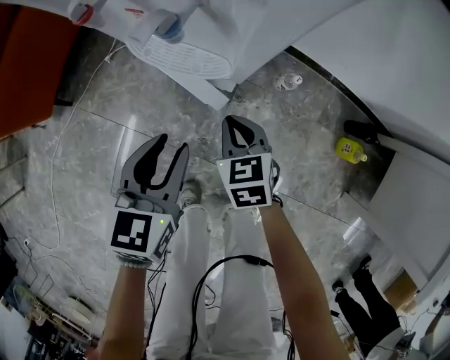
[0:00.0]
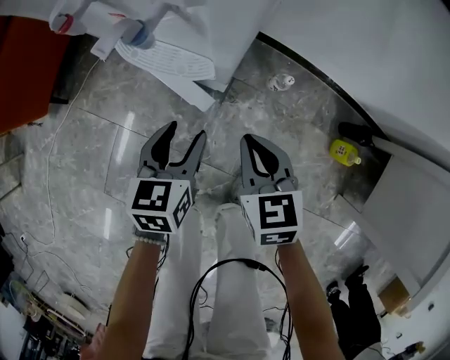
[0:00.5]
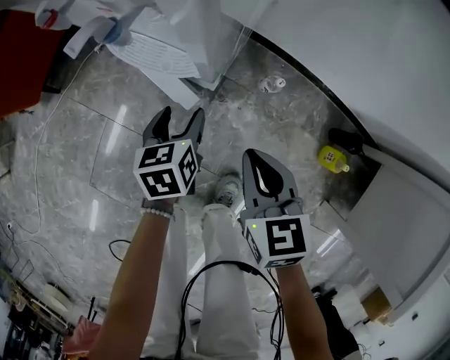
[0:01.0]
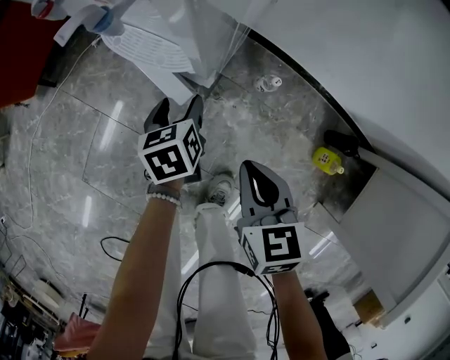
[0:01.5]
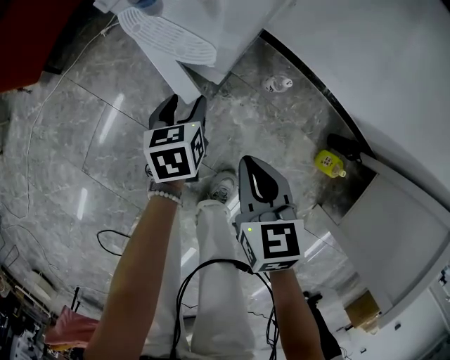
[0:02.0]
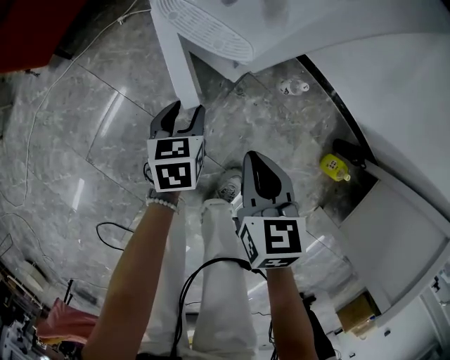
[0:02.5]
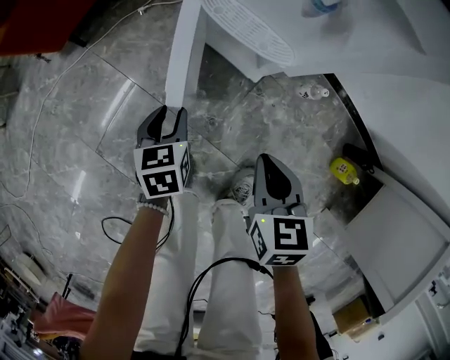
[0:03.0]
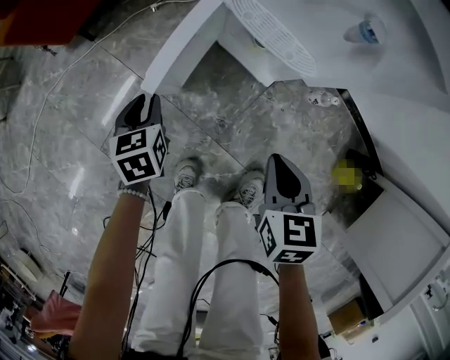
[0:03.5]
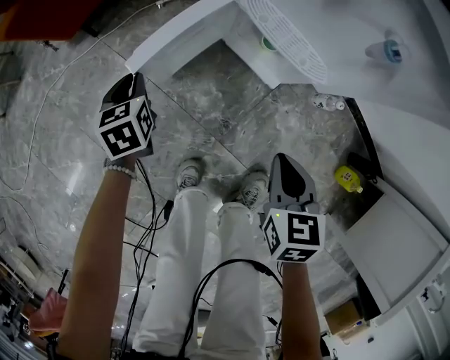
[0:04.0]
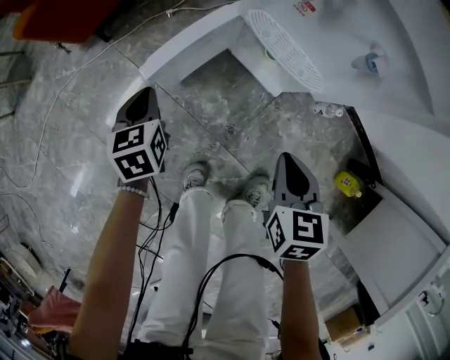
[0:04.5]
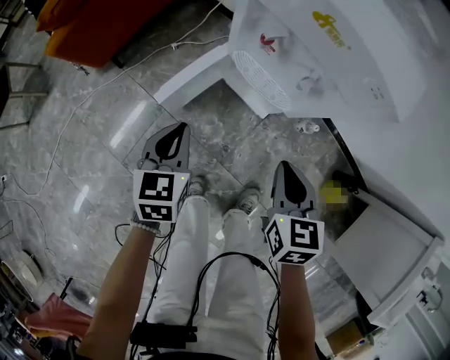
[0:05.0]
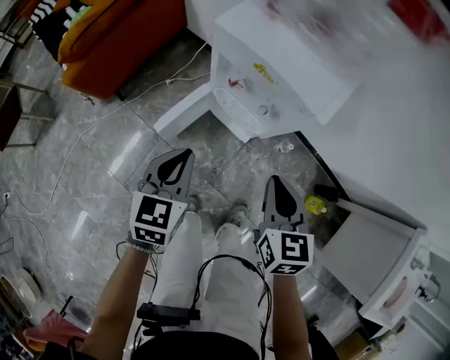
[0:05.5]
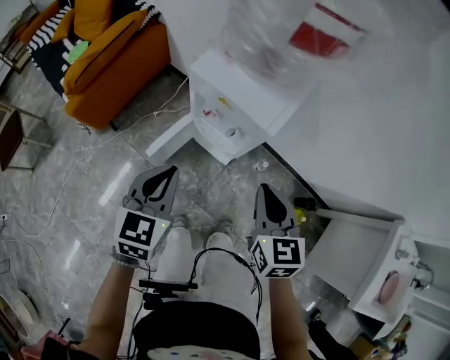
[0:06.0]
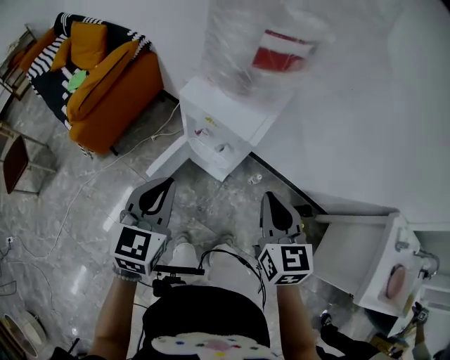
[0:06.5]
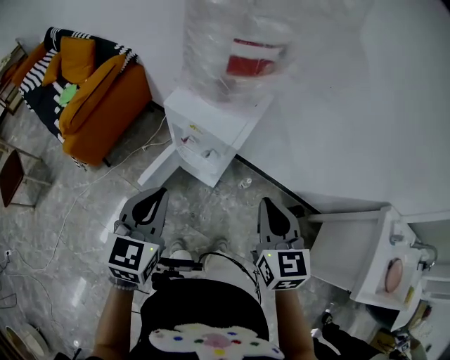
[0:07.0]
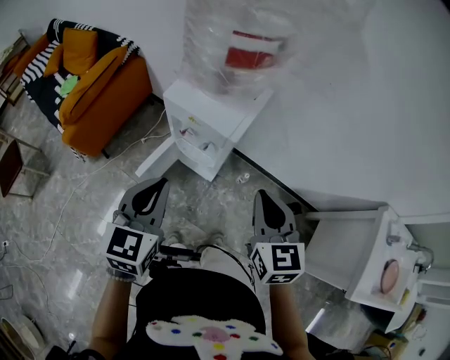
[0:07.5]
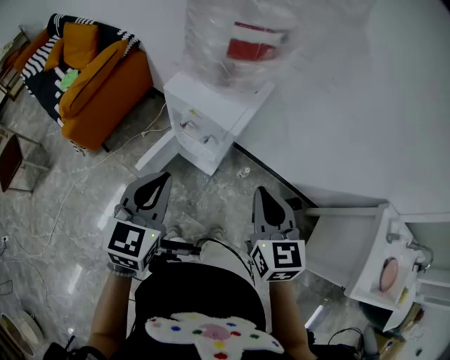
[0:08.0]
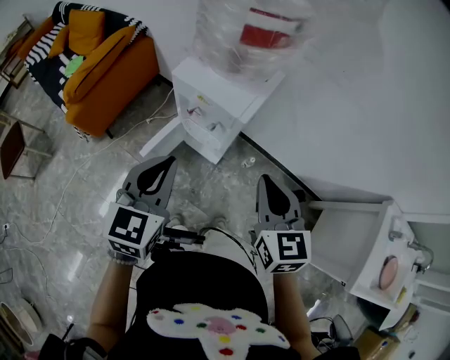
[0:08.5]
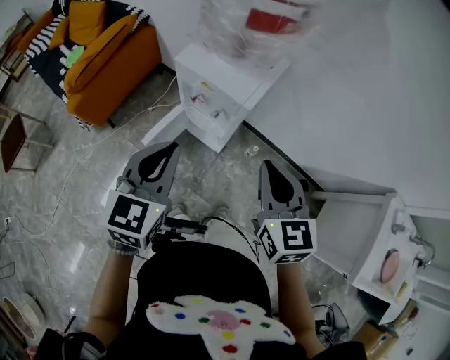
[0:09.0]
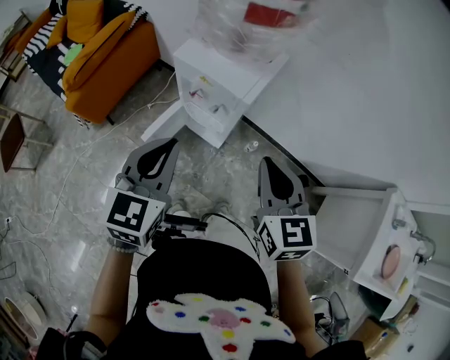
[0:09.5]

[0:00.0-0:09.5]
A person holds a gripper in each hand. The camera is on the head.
0:00.0 to 0:02.0: The right gripper travels to the right, upward and backward by approximately 15 cm. Meanwhile the left gripper shifts some 15 cm downward and to the right, and turns by some 30 degrees.
0:02.0 to 0:04.0: The left gripper moves to the left, about 35 cm, and closes its fingers. Meanwhile the right gripper travels to the left by about 10 cm.
0:04.0 to 0:05.5: The left gripper goes about 40 cm upward and to the right, and turns by approximately 40 degrees; the right gripper travels upward by about 30 cm.
0:05.5 to 0:07.5: The right gripper goes some 25 cm upward and to the right. The left gripper heads upward, covering roughly 25 cm.
0:07.5 to 0:09.5: The grippers stay close to where they were, moving slightly.

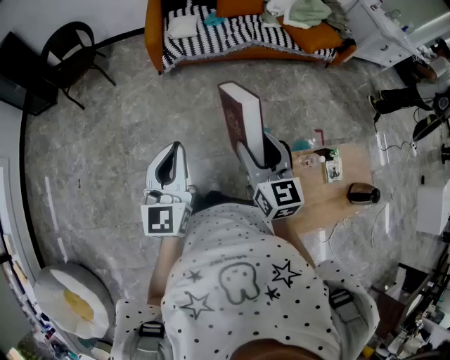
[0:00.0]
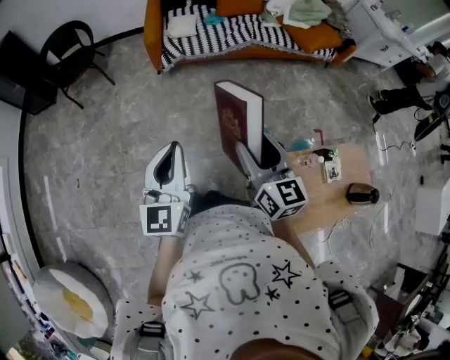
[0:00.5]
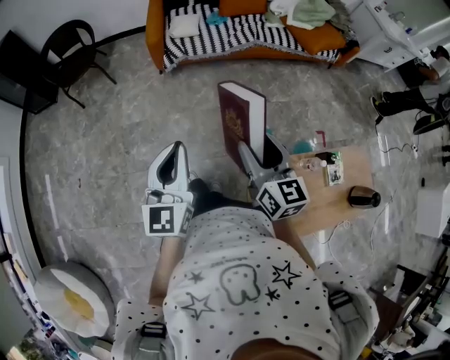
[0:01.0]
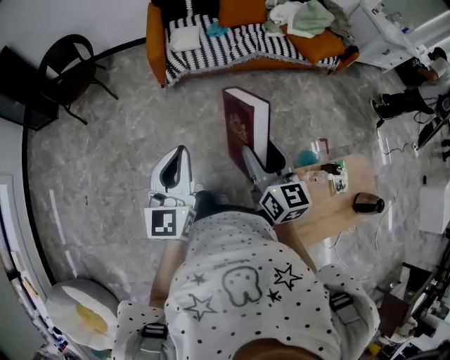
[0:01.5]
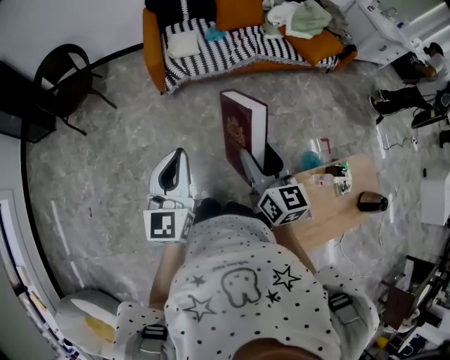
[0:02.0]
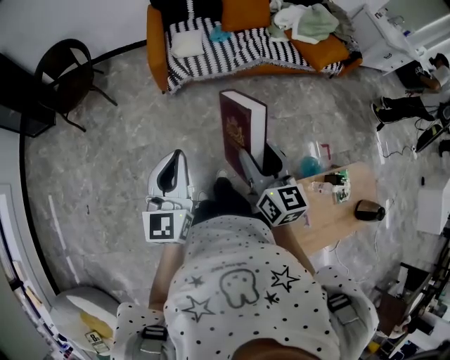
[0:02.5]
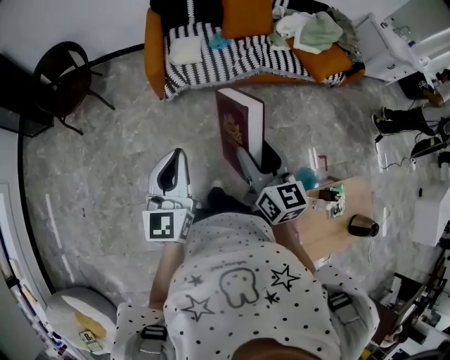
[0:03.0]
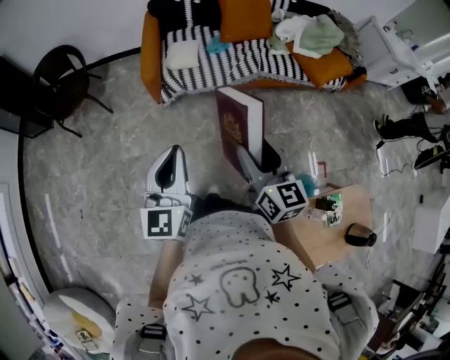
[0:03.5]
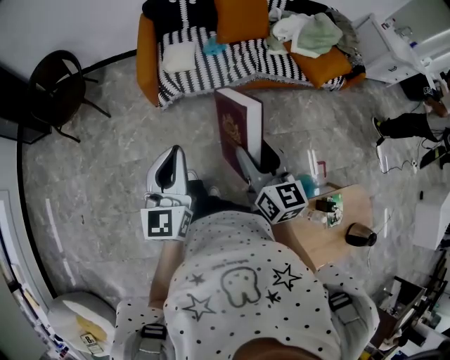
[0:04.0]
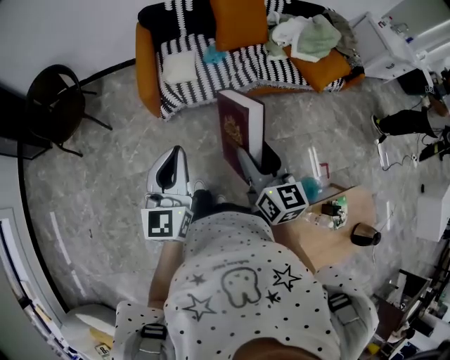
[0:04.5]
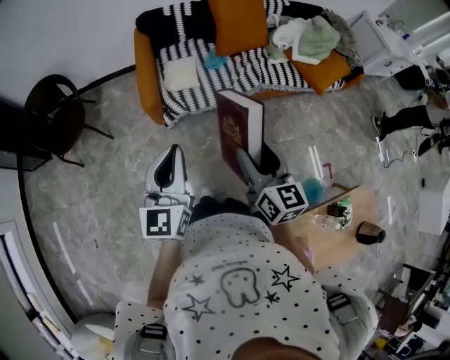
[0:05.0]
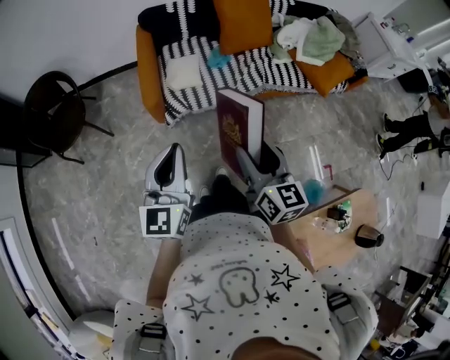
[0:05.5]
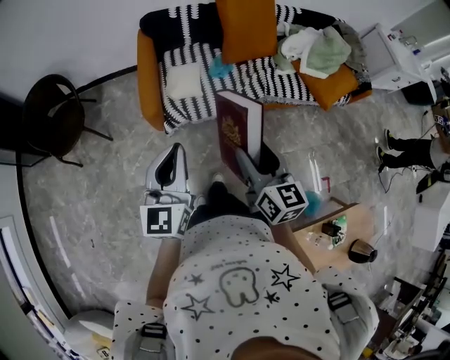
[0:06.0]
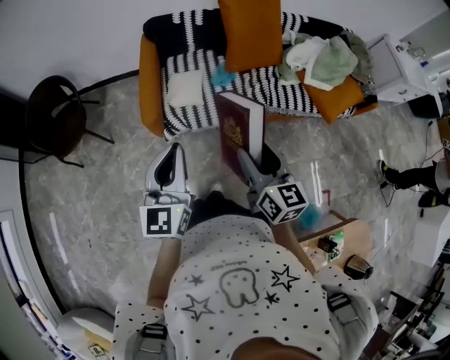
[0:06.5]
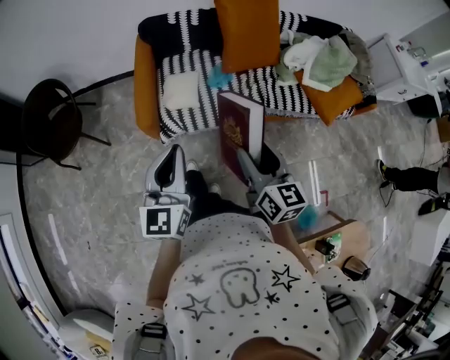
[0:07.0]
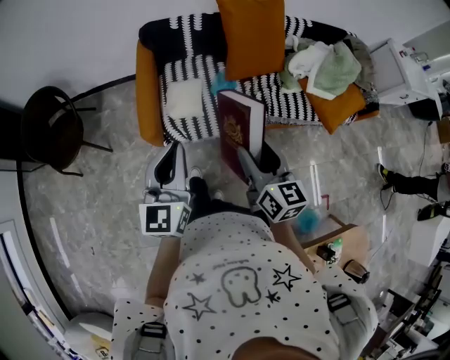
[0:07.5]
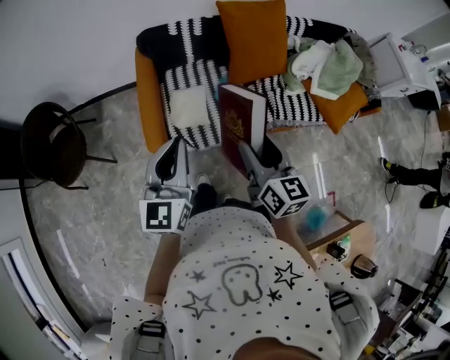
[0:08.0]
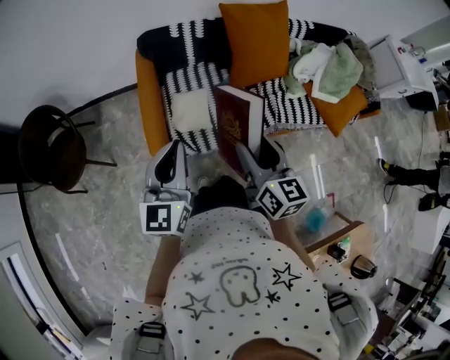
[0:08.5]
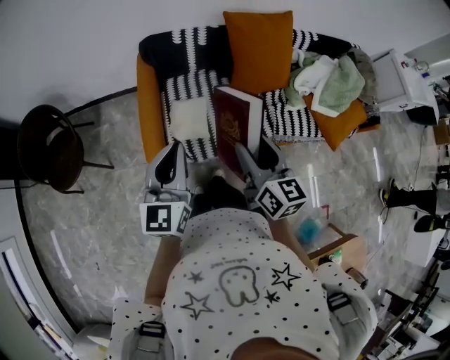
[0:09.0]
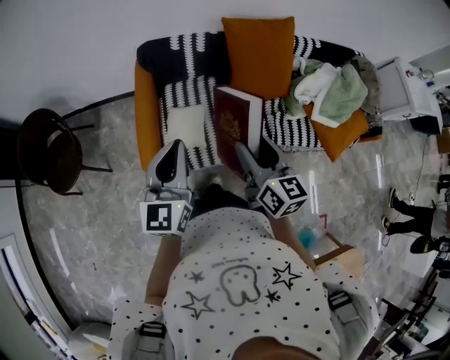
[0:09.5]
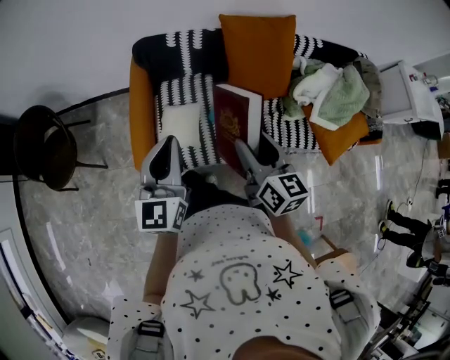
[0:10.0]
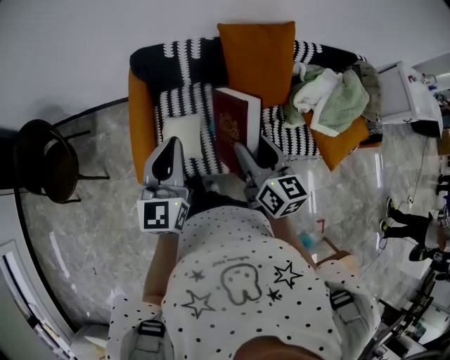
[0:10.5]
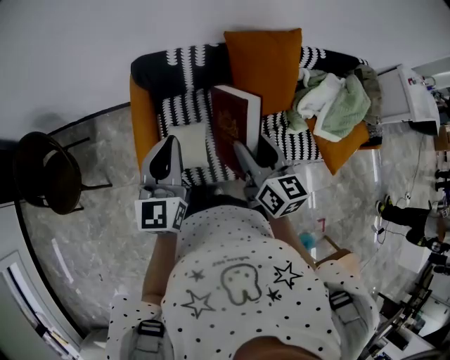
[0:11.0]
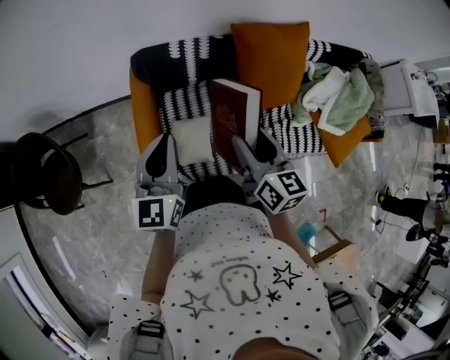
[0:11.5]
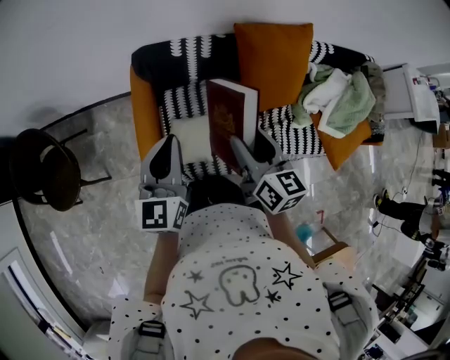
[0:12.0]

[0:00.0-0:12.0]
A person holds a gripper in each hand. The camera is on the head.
0:00.0 to 0:02.0: The grippers both shift forward and to the left by some 15 cm.
0:02.0 to 0:04.0: The grippers both shift forward and to the right by some 15 cm.
0:04.0 to 0:06.0: The two grippers go about 20 cm forward.
0:06.0 to 0:08.0: Both grippers move forward, roughly 20 cm.
0:08.0 to 0:10.0: Both grippers travel together forward, some 15 cm.
0:10.0 to 0:12.0: Both grippers move forward and to the left, some 15 cm.

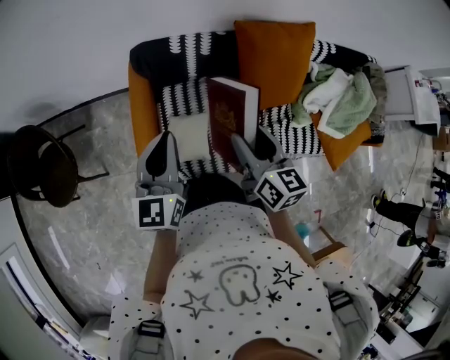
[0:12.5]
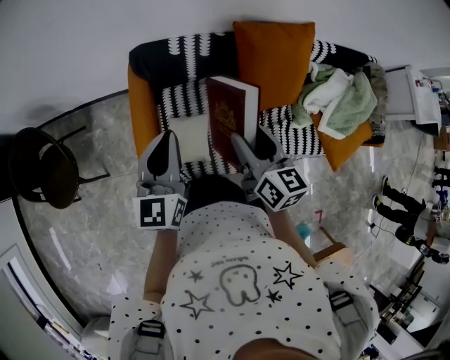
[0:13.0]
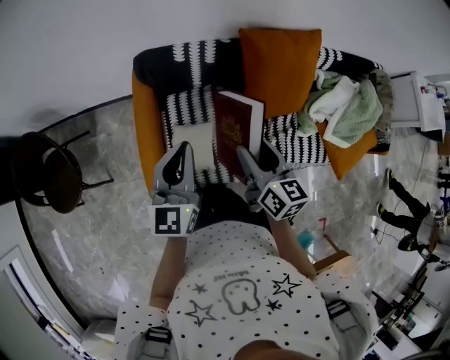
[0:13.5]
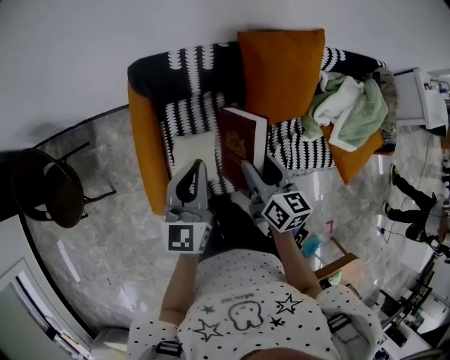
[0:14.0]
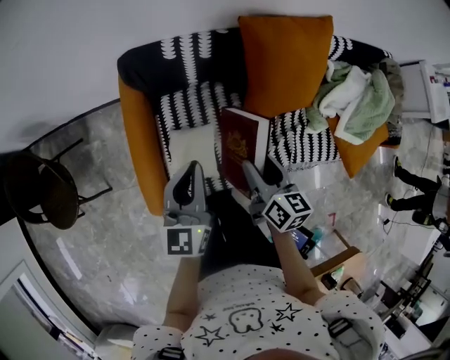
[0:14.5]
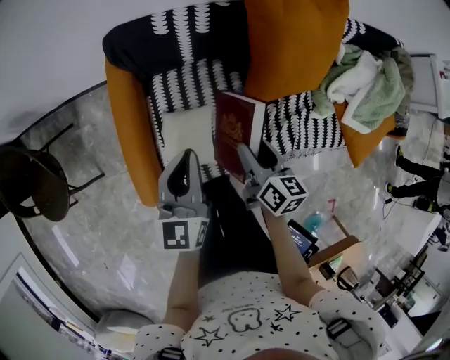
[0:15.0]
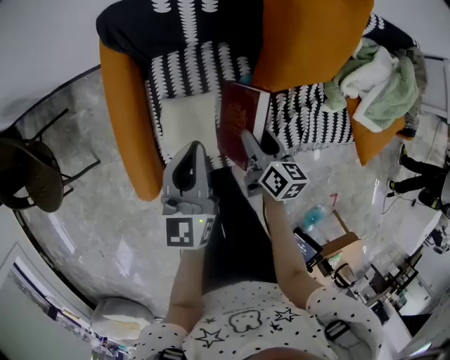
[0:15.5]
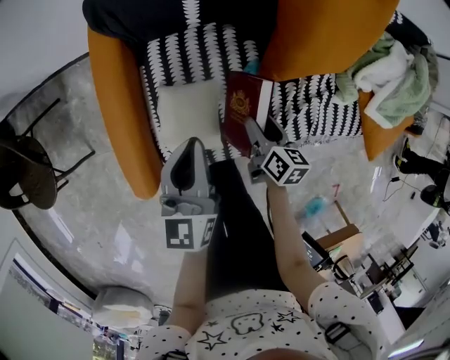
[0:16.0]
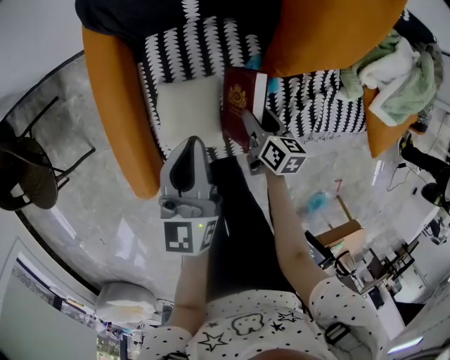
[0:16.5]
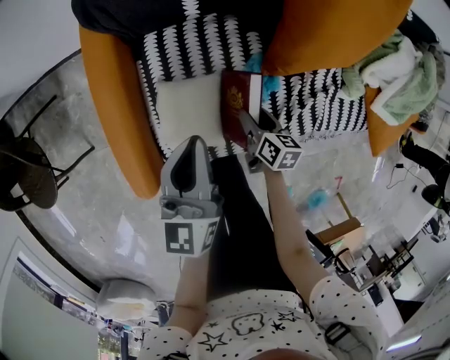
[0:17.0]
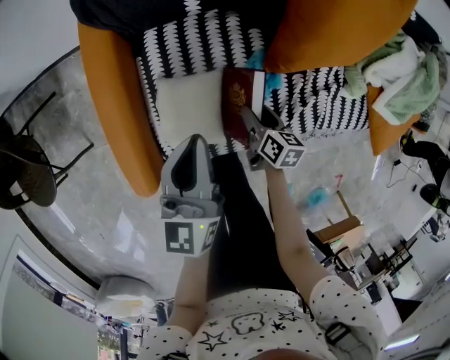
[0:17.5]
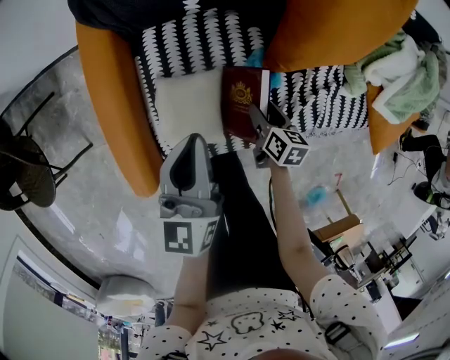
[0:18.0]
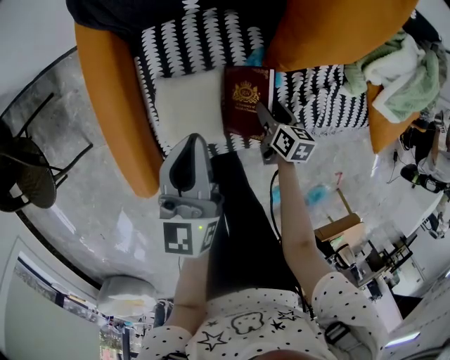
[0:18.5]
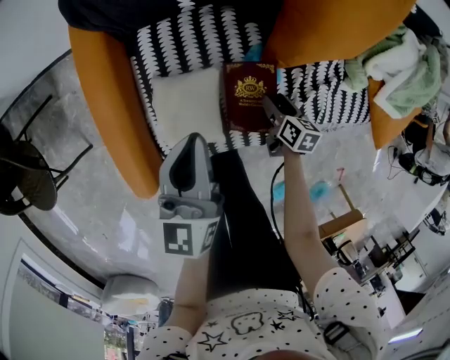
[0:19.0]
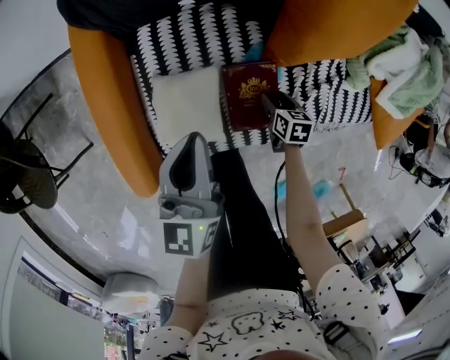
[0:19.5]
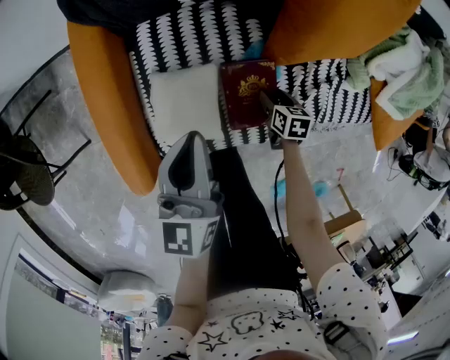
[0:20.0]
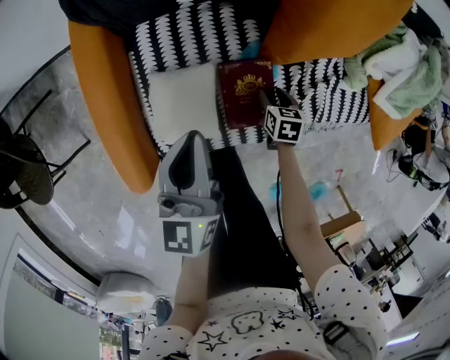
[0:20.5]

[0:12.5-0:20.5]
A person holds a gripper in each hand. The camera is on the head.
0:12.5 to 0:14.5: The left gripper goes approximately 15 cm downward and to the right, while the right gripper goes some 15 cm downward.
0:14.5 to 0:16.5: The left gripper heads downward, covering roughly 15 cm. Meanwhile the right gripper is displaced downward by approximately 25 cm.
0:16.5 to 0:18.5: The right gripper is displaced downward by roughly 5 cm.
0:18.5 to 0:20.5: The right gripper changes place by approximately 5 cm, and changes its angle by about 20 degrees.
